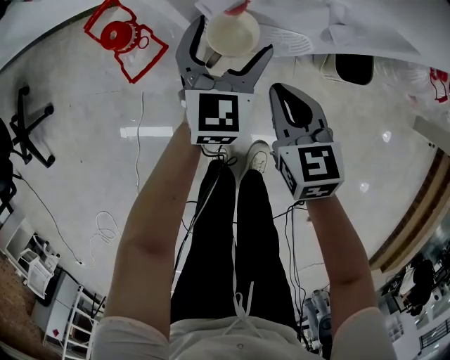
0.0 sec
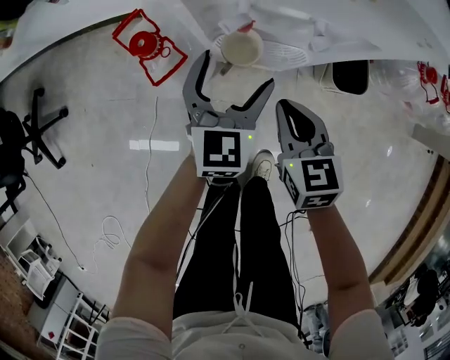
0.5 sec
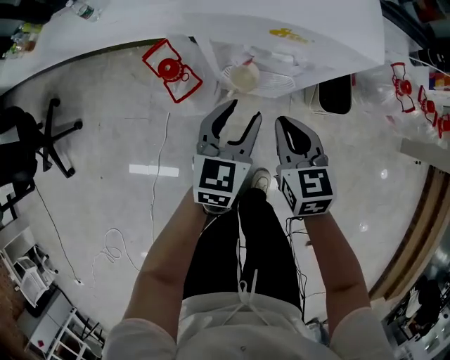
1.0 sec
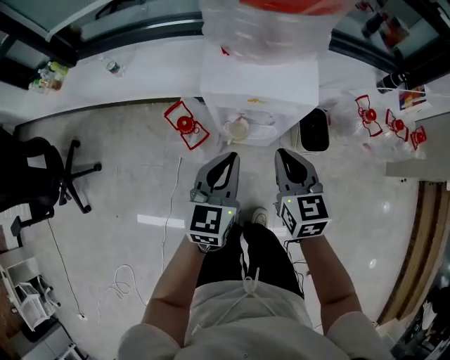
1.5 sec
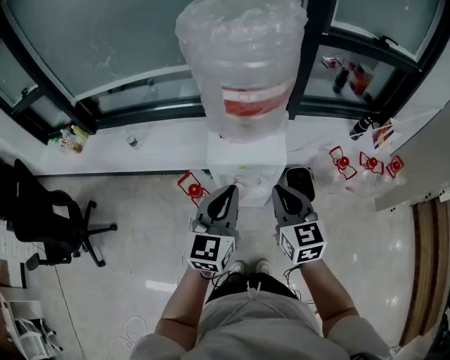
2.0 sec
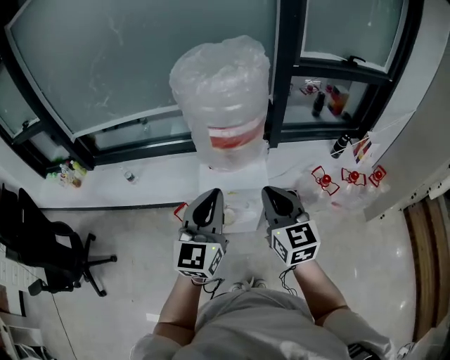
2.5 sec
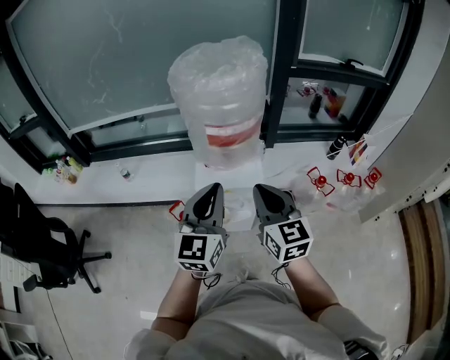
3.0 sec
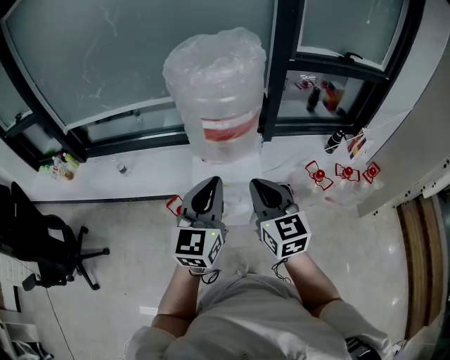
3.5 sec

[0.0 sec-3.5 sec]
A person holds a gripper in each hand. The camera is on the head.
0.0 sec to 2.0 sec: Both grippers travel together upward, about 50 cm. The left gripper closes its fingers, while the right gripper rotates roughly 30 degrees.
2.0 sec to 3.5 sec: Both grippers travel together upward, some 10 cm.

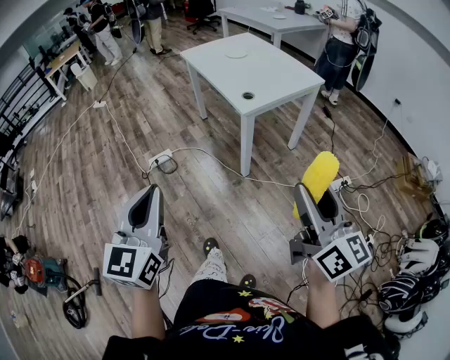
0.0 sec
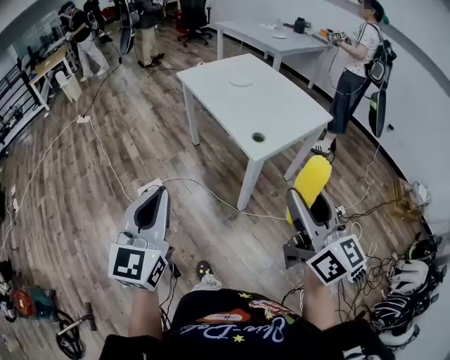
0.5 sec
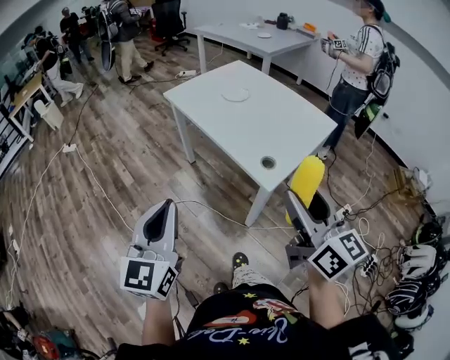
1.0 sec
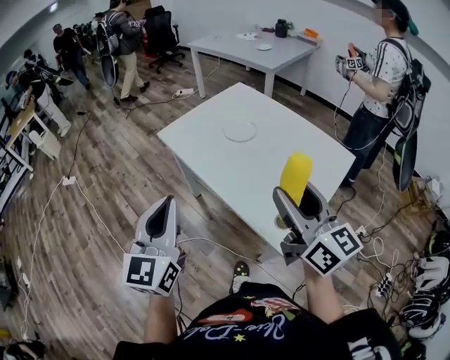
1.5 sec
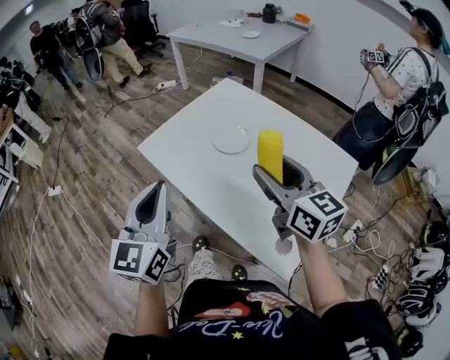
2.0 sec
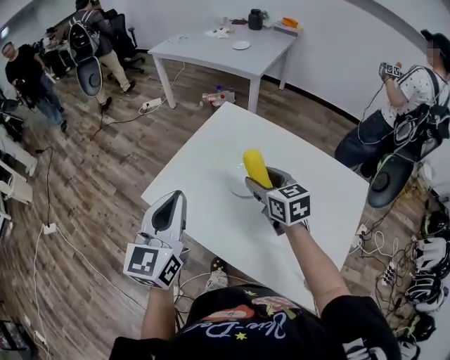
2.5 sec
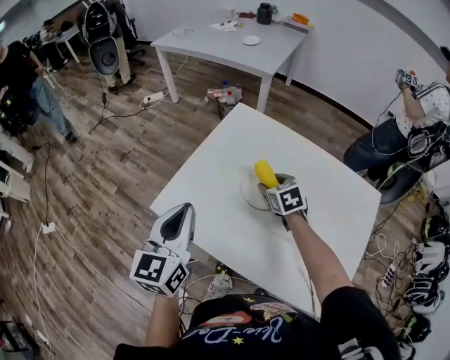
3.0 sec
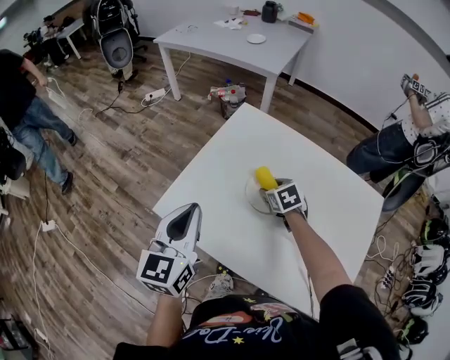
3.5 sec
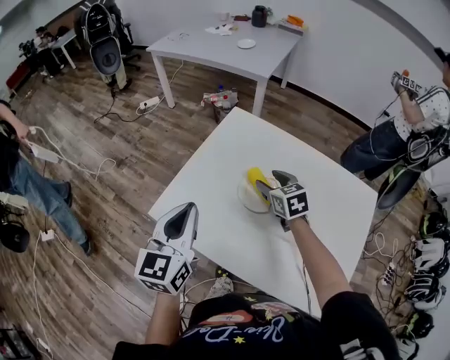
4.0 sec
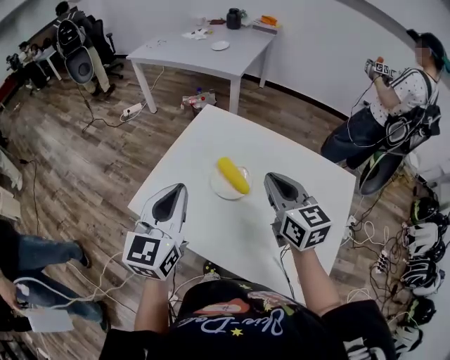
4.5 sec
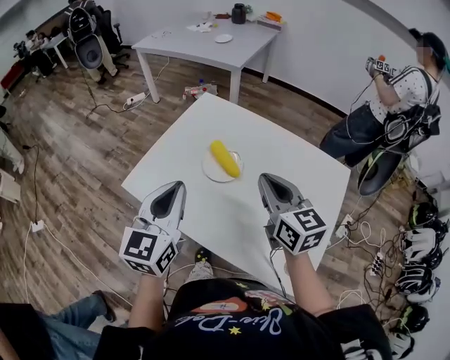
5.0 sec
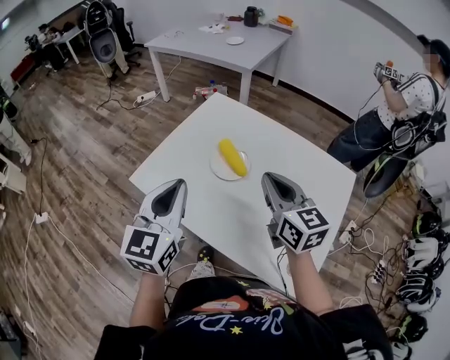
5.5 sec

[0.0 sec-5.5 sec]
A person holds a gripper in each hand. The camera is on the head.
0.0 sec to 2.0 sec: The two grippers travel together, forward, approximately 80 cm.
2.0 sec to 3.5 sec: The left gripper shifts about 25 cm forward. Meanwhile the right gripper is displaced forward and downward by some 40 cm, and points its fingers roughly 50 degrees further downward.
3.5 sec to 5.5 sec: The left gripper heads backward and to the right, covering some 15 cm. Meanwhile the right gripper heads upward and backward, covering approximately 30 cm, angles its fingers upward, by some 40 degrees, and closes up.

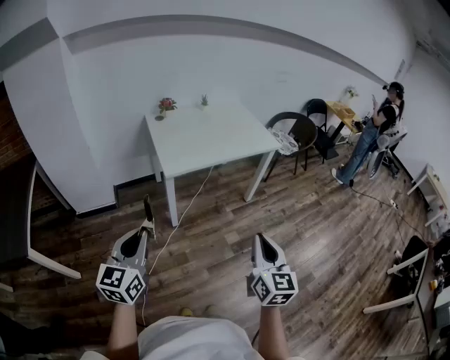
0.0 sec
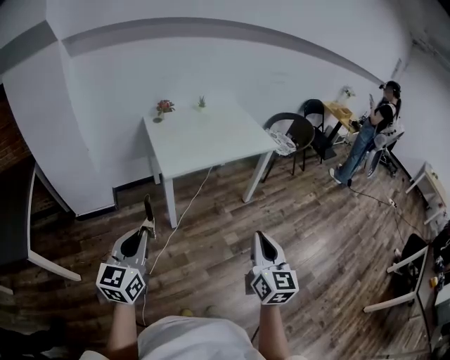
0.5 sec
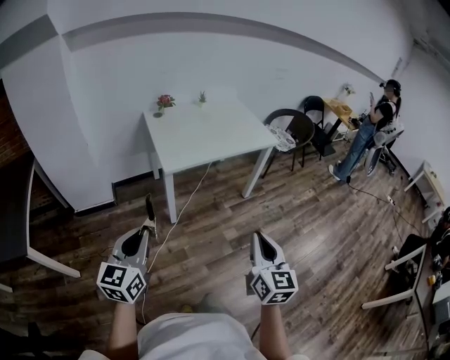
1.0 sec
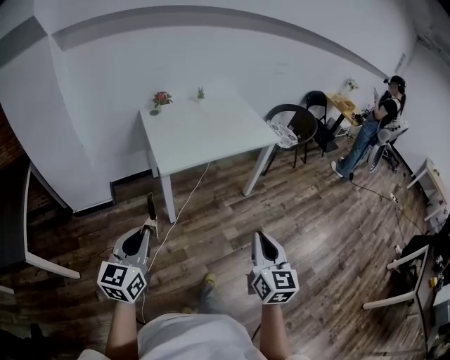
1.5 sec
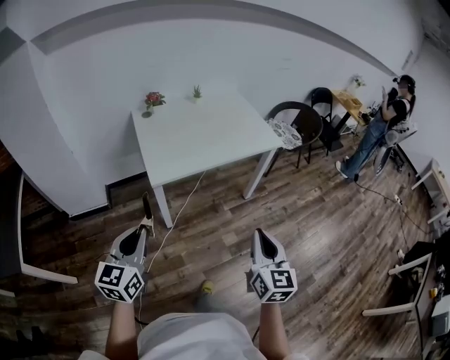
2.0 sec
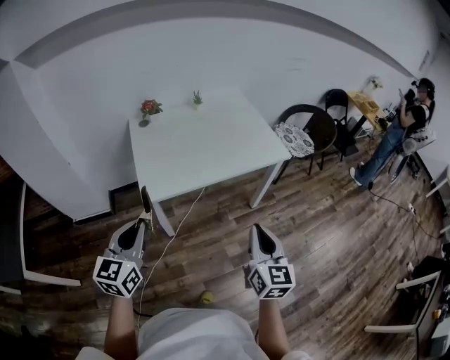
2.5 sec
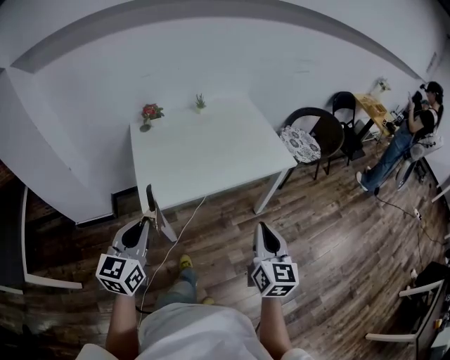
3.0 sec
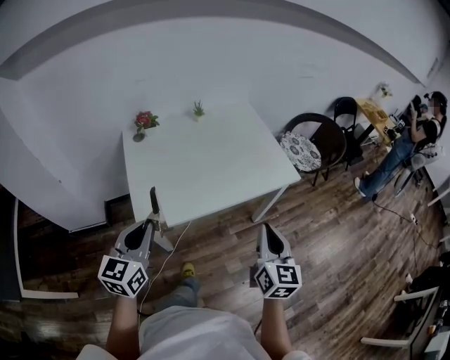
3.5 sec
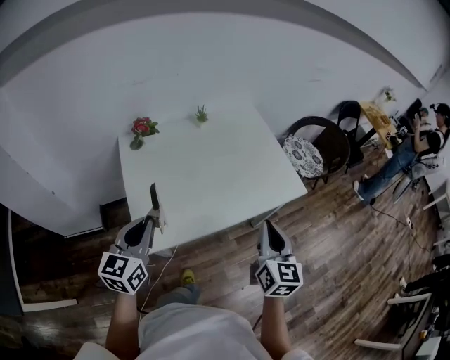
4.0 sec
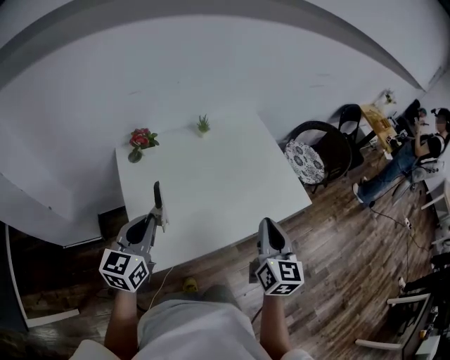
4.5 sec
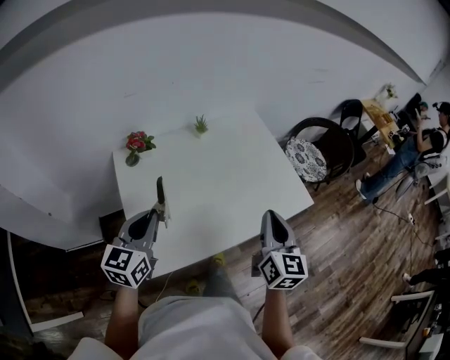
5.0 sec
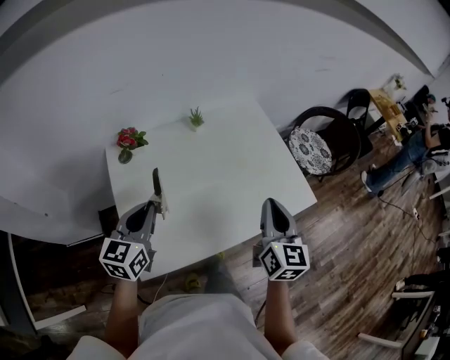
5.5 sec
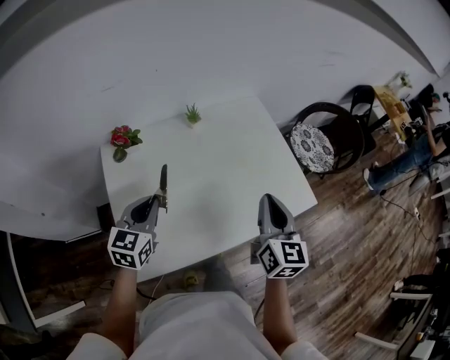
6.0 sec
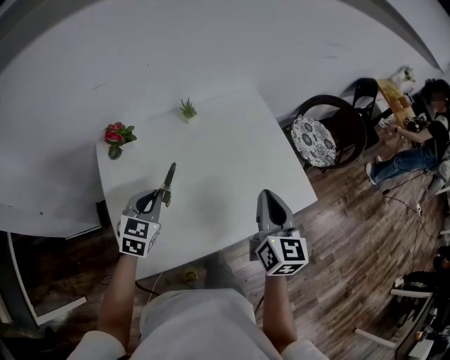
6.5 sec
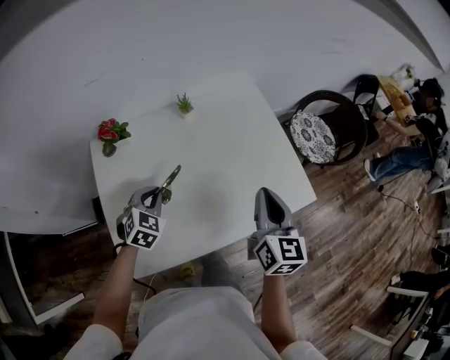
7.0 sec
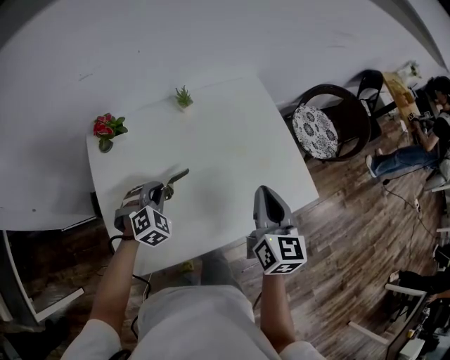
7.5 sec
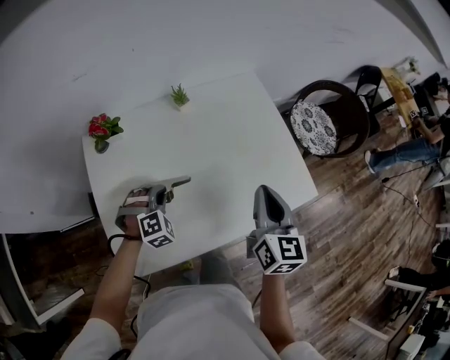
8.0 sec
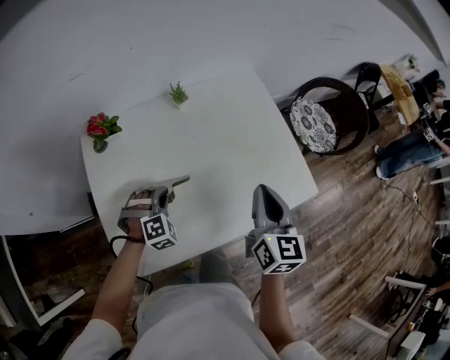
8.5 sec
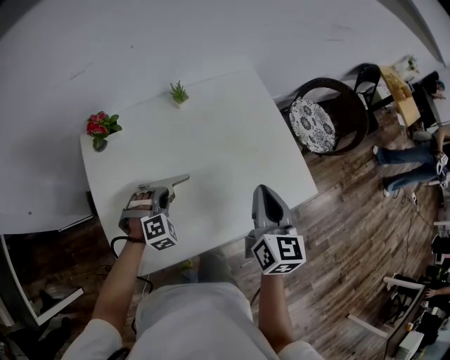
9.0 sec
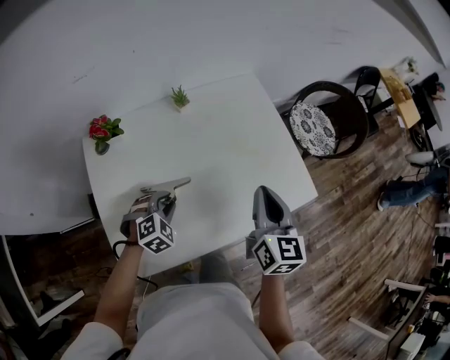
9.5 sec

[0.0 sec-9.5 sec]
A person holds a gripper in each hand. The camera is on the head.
0.0 sec to 2.0 sec: The grippers both shift forward by about 15 cm.
2.0 sec to 4.0 sec: Both grippers travel together forward, roughly 40 cm.
4.0 sec to 5.5 sec: Both grippers travel together forward, approximately 15 cm.
5.5 sec to 7.5 sec: The left gripper travels downward and forward by approximately 20 cm, and twists approximately 50 degrees clockwise, seen from behind. Meanwhile the right gripper shifts some 5 cm forward.
7.5 sec to 9.5 sec: The left gripper ends up roughly 5 cm from where it was, and opens its fingers.

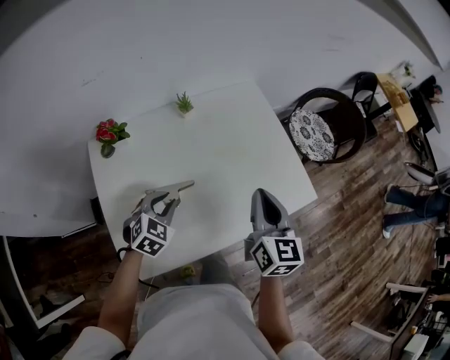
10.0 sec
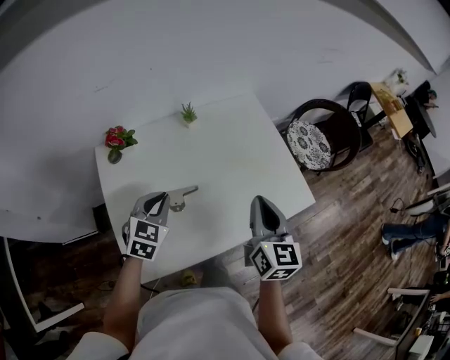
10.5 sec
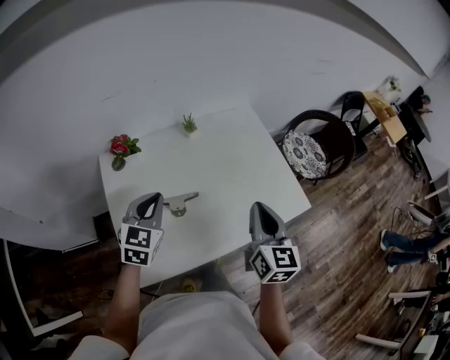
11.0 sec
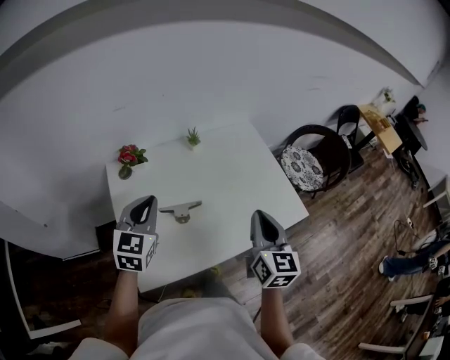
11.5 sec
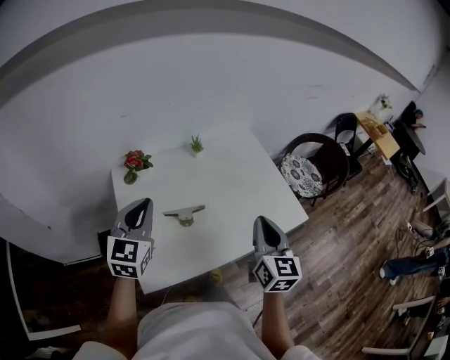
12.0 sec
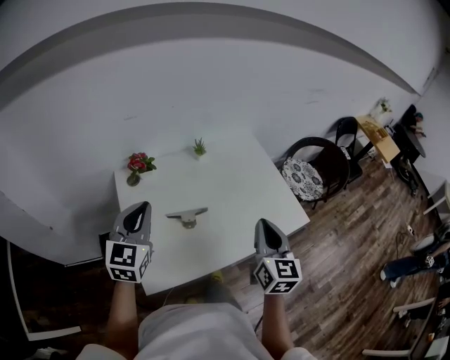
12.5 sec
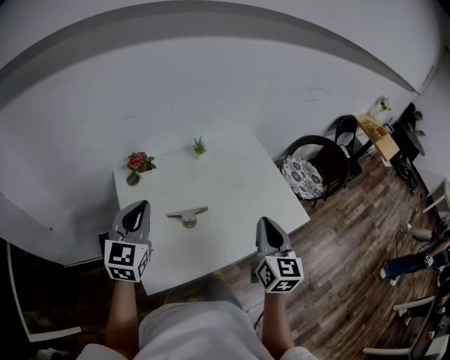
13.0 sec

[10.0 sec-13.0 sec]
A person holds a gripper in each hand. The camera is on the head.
10.0 sec to 11.5 sec: The left gripper goes approximately 20 cm upward and to the left, swivels approximately 40 degrees, and closes, while the right gripper moves backward and upward, roughly 10 cm.
11.5 sec to 13.0 sec: The left gripper moves approximately 10 cm.

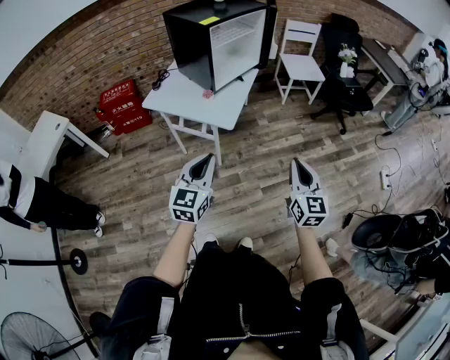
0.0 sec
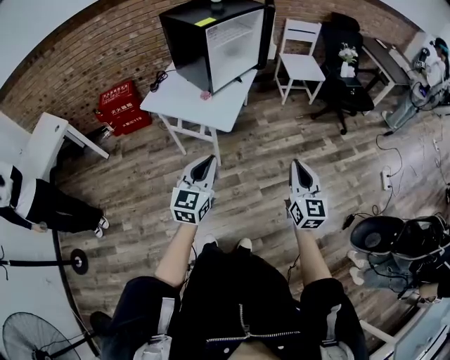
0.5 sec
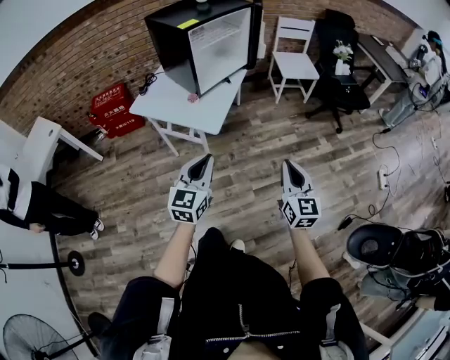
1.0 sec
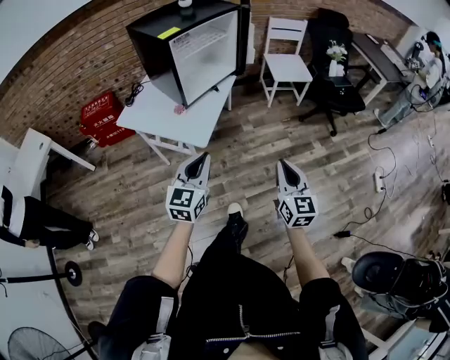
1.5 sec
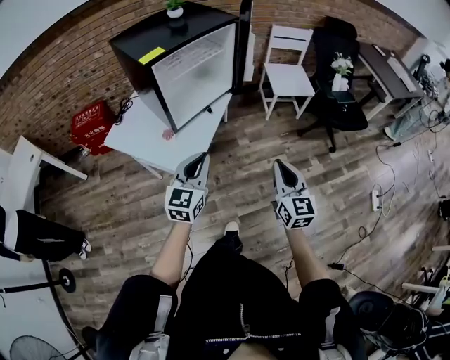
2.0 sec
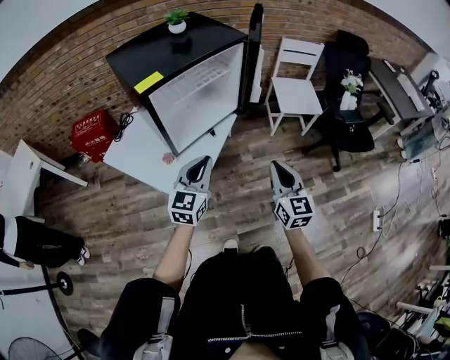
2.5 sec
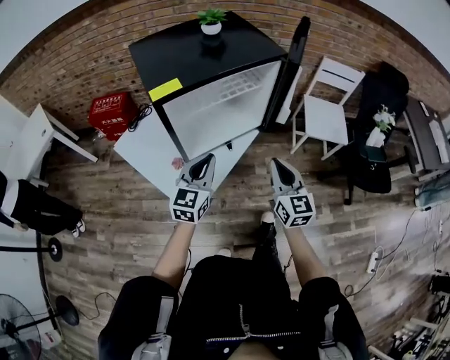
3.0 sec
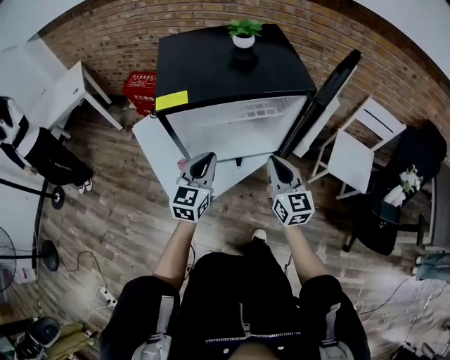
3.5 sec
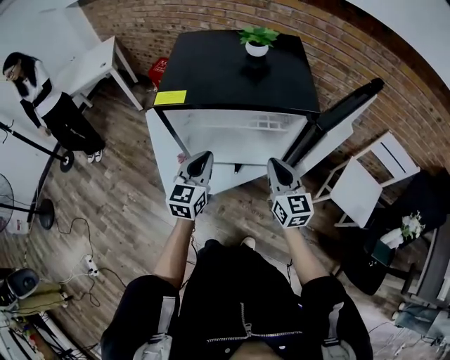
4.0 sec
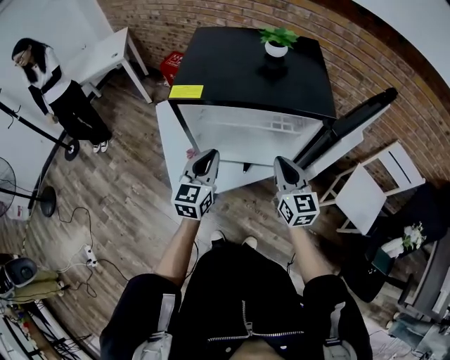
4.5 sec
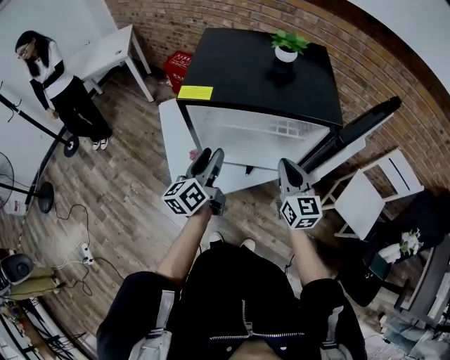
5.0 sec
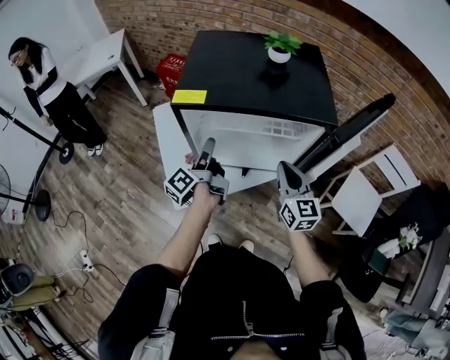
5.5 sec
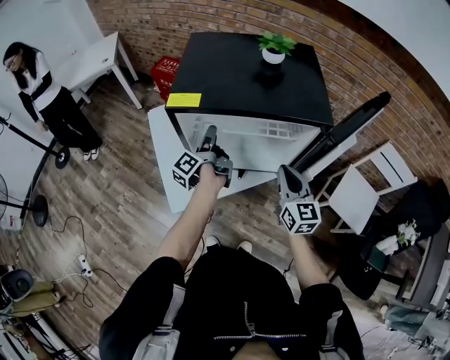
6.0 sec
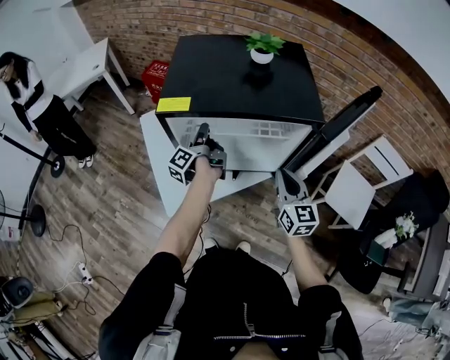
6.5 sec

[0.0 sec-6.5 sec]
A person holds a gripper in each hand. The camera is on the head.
0.0 sec to 2.0 sec: The right gripper goes some 25 cm forward; the left gripper shifts some 30 cm forward and to the right.
2.0 sec to 4.5 sec: The right gripper changes place by roughly 40 cm, and rotates about 50 degrees, while the left gripper shifts by roughly 25 cm, and rotates roughly 50 degrees.
4.5 sec to 6.5 sec: The left gripper moves forward, about 15 cm, rolls counterclockwise, seen from behind, by approximately 90 degrees, and opens, then closes once more.
